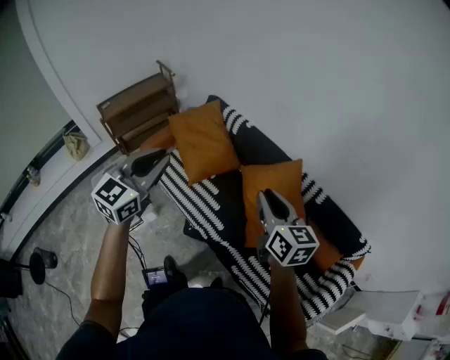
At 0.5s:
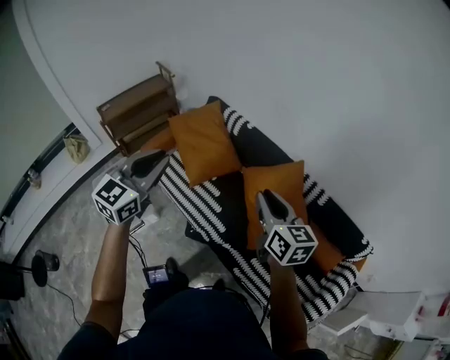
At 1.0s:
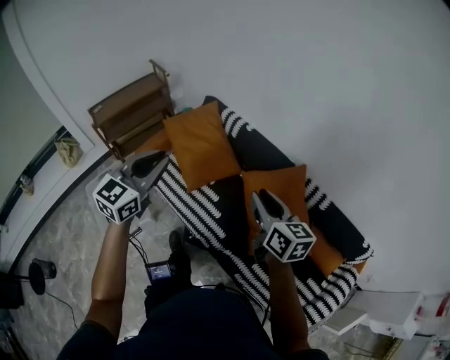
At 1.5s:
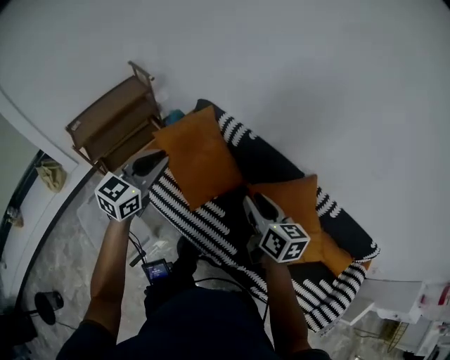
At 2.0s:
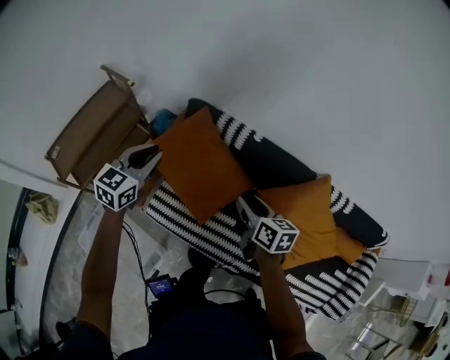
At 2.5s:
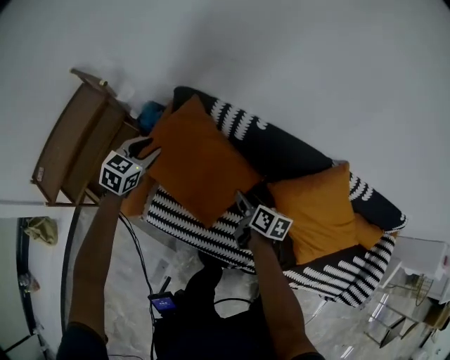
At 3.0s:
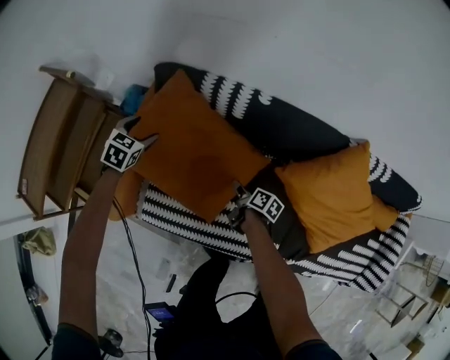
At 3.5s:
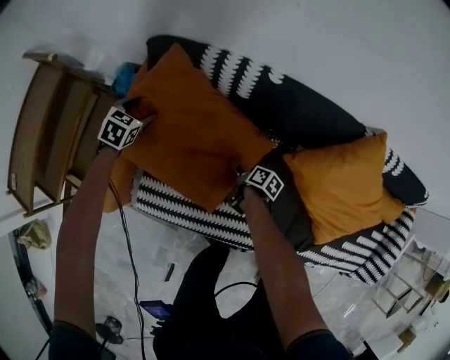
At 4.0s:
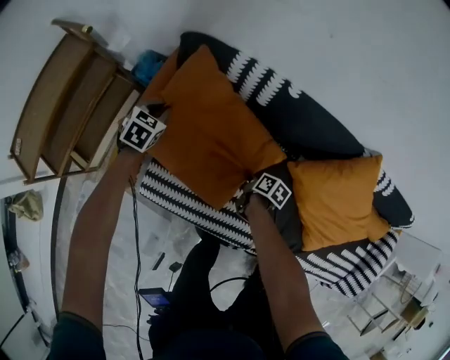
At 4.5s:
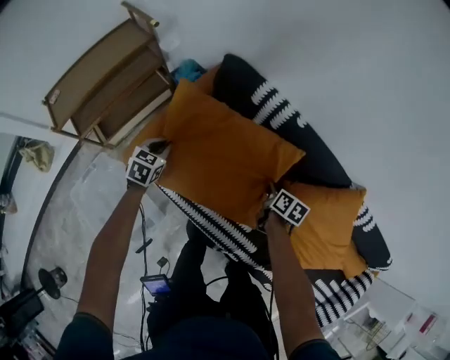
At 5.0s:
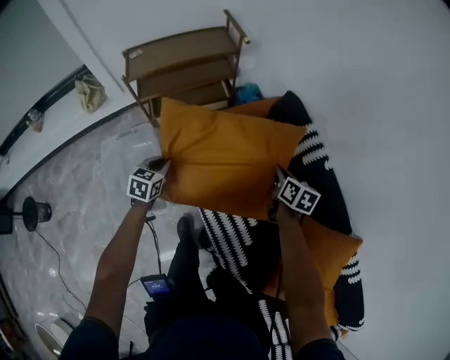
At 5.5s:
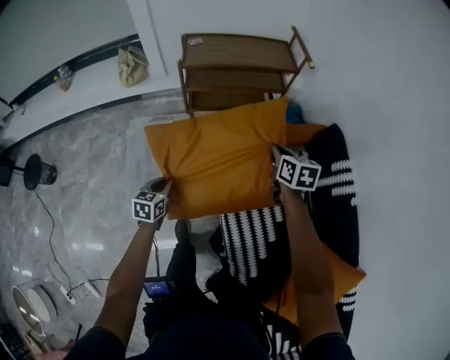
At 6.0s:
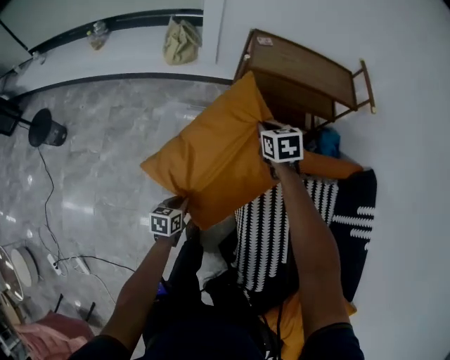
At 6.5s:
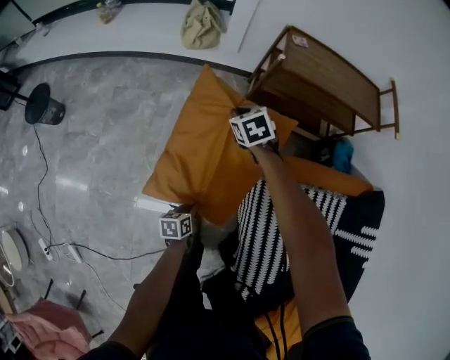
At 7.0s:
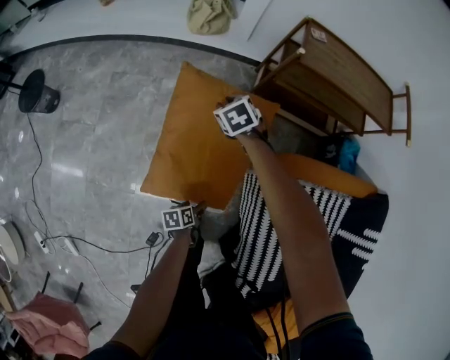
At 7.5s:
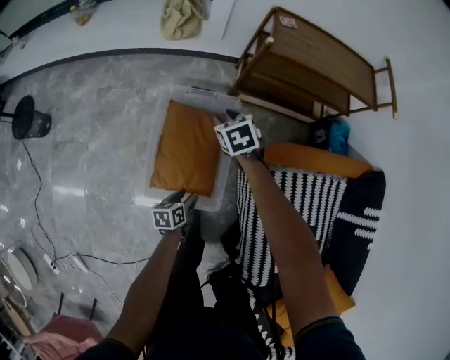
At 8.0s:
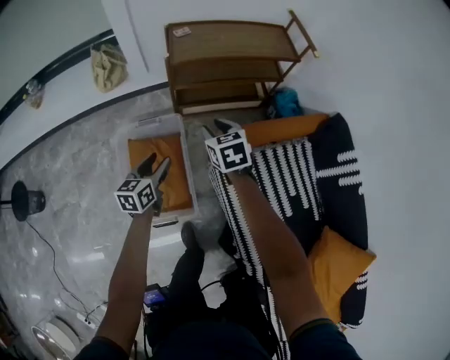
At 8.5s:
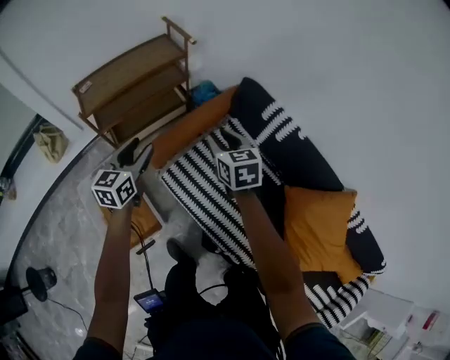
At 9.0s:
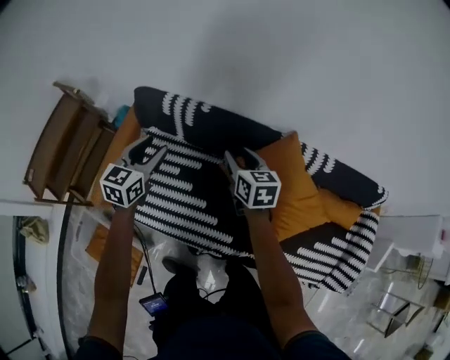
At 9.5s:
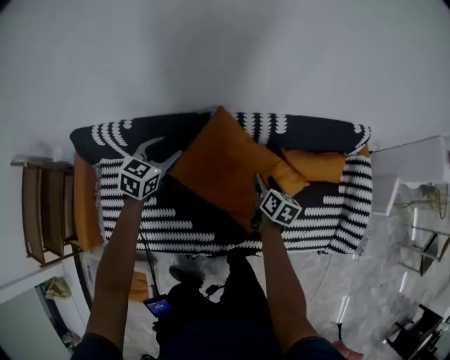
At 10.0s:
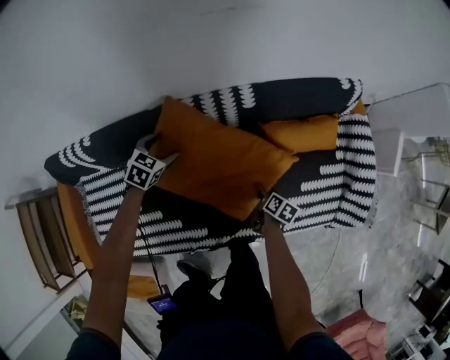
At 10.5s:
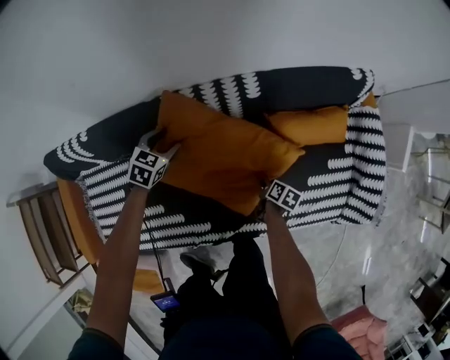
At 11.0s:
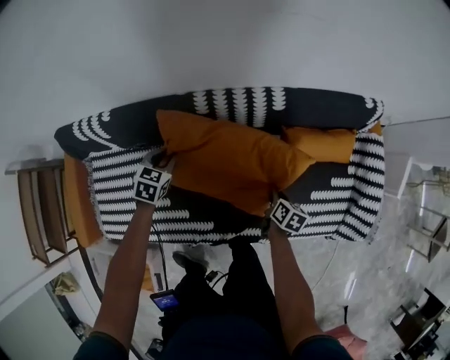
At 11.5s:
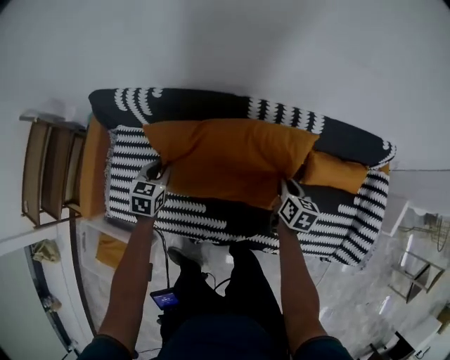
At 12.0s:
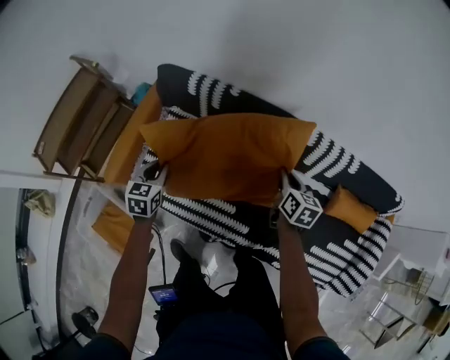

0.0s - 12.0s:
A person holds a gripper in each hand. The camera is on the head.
0.0s - 2.0s: Both grippers are carried forward and to the left, about 50 cm. Both grippers move downward, some 20 cm. The left gripper swivels roughly 20 degrees. The right gripper rotates about 30 degrees.
2.0s - 4.0s: The left gripper shifts about 40 cm downward and forward, points its fingers some 30 degrees further downward, and opens and closes again. Meanwhile the right gripper travels downward by about 40 cm, swivels some 50 degrees, and closes its fingers.
4.0s - 6.0s: The left gripper goes upward and returns, approximately 15 cm each way, and rotates around the line of its fingers by roughly 90 degrees, counterclockwise from behind; the right gripper changes place by about 80 cm, and rolls counterclockwise, seen from behind, by roughly 110 degrees.
6.0s - 8.0s: The right gripper goes to the left and returns, about 25 cm each way, and opens its fingers; the left gripper shifts approximately 20 cm forward and upward, changes its angle by roughly 20 degrees, and opens up.
8.0s - 10.0s: The pair of grippers is taken about 1 m. The right gripper rolls clockwise, seen from behind, by some 120 degrees, and opens up. Meanwhile the left gripper angles its fingers downward, by some 30 degrees, and opens up.
10.0s - 12.0s: The right gripper shifts by some 50 cm, rolls counterclockwise, seen from behind, by roughly 50 degrees, and closes up; the left gripper ends up roughly 60 cm from where it was, swivels about 60 degrees, and closes its fingers.

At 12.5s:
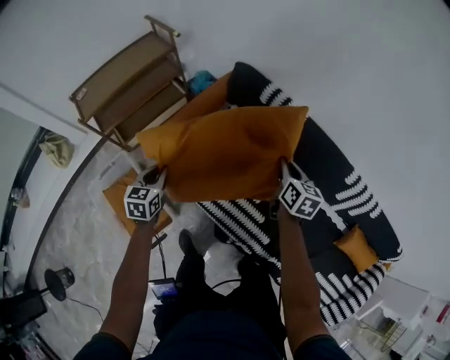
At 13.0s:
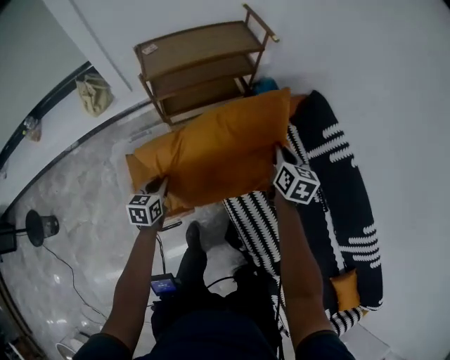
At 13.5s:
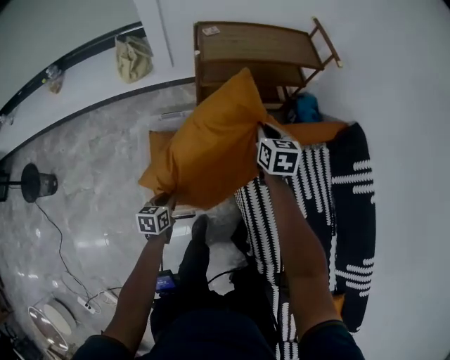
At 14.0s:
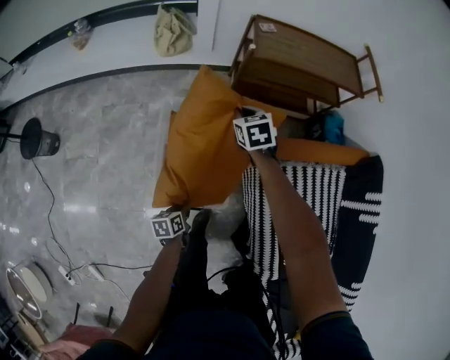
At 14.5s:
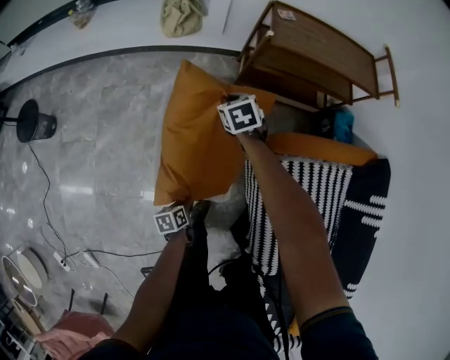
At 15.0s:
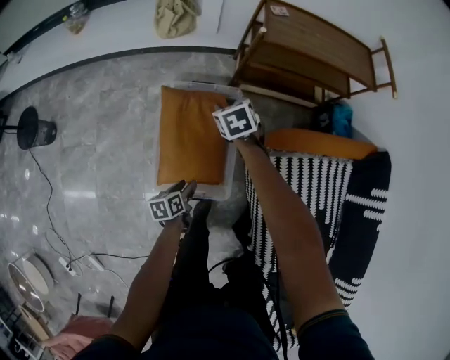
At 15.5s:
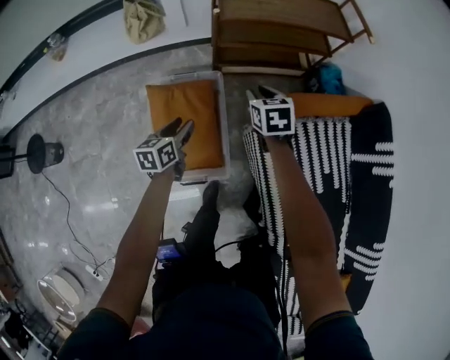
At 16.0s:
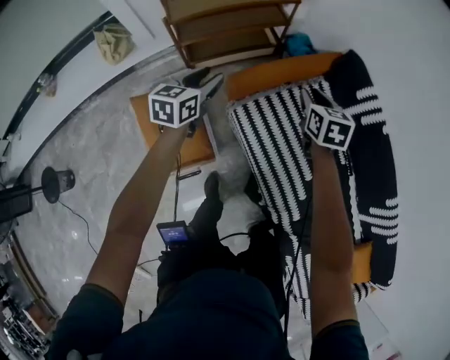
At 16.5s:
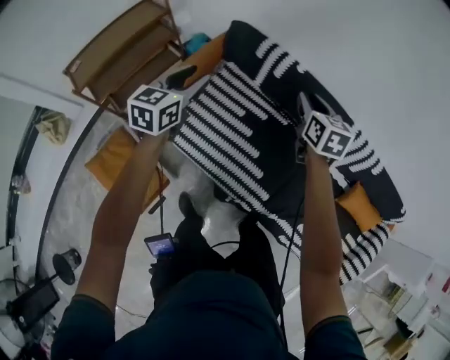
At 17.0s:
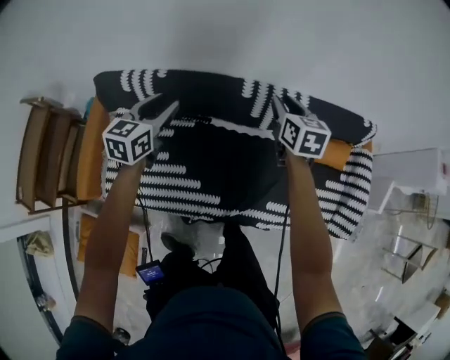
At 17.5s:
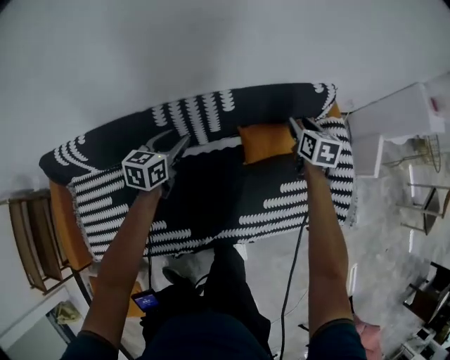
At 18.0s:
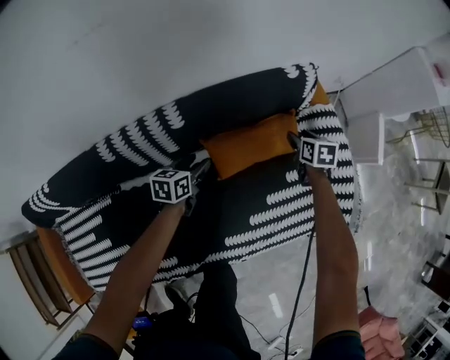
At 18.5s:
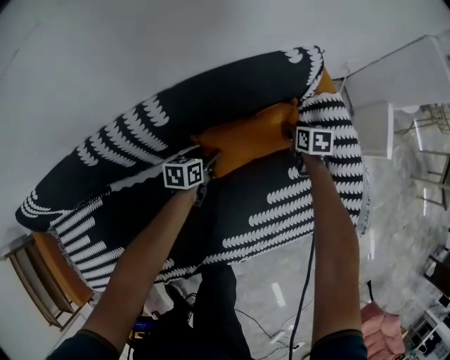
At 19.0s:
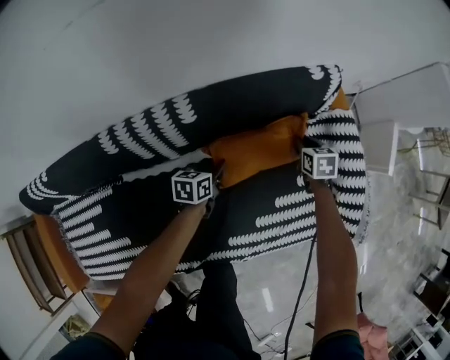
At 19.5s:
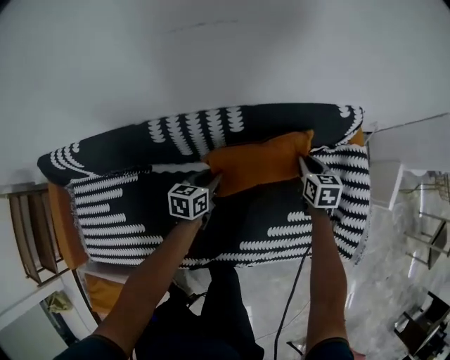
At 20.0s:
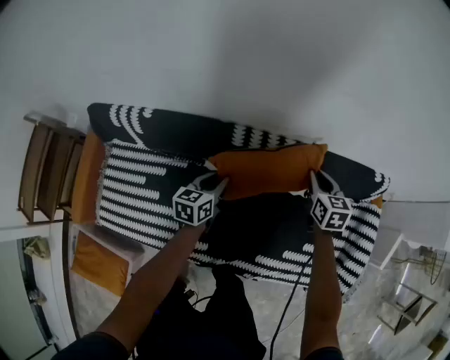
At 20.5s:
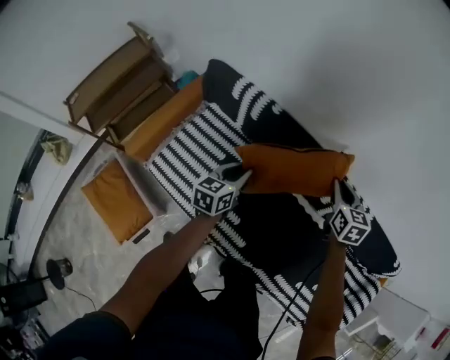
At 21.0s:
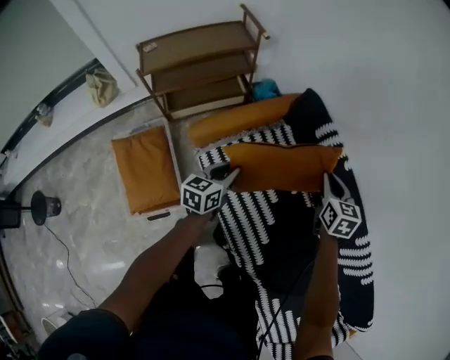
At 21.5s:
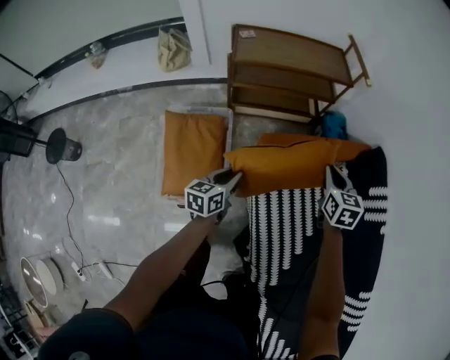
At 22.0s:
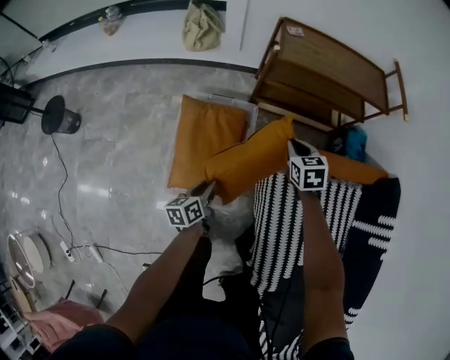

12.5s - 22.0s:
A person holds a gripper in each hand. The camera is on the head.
12.5s - 14.5s: The right gripper ends up about 90 cm from where it was, and swivels roughly 90 degrees; the left gripper ends up about 50 cm from where it was, and rotates around the line of its fingers by roughly 80 degrees, counterclockwise from behind.
14.5s - 16.5s: The right gripper changes place by some 1 m, and swivels approximately 80 degrees; the left gripper changes place by approximately 80 cm, and rotates around the line of its fingers by roughly 80 degrees, clockwise from behind.
16.5s - 18.0s: The two grippers travel together, roughly 90 cm. The left gripper rotates roughly 60 degrees. Meanwhile the right gripper changes its angle by roughly 60 degrees.
18.0s - 20.0s: The left gripper changes place by about 35 cm, changes its angle by about 30 degrees, and closes its fingers. Meanwhile the right gripper moves about 40 cm, turns by approximately 30 degrees, and closes its fingers.
20.0s - 22.0s: The pair of grippers is taken approximately 1 m. The left gripper swivels approximately 100 degrees. Meanwhile the right gripper rotates some 90 degrees.

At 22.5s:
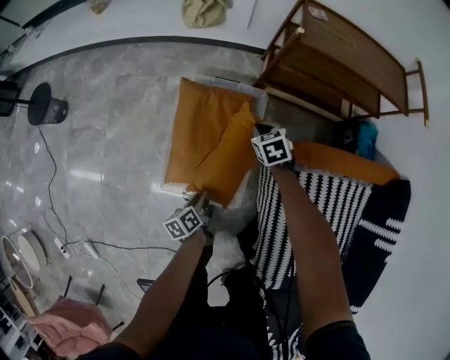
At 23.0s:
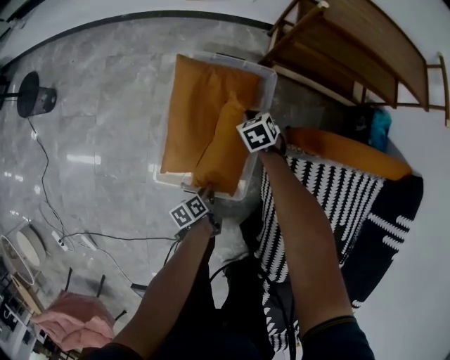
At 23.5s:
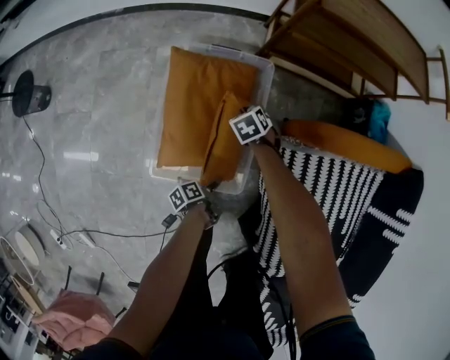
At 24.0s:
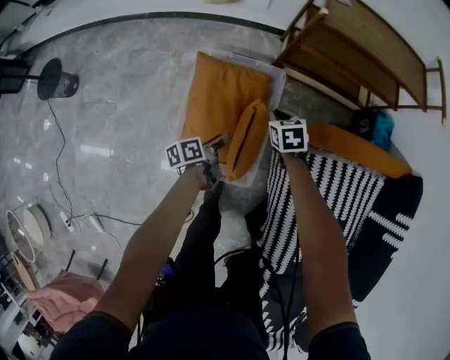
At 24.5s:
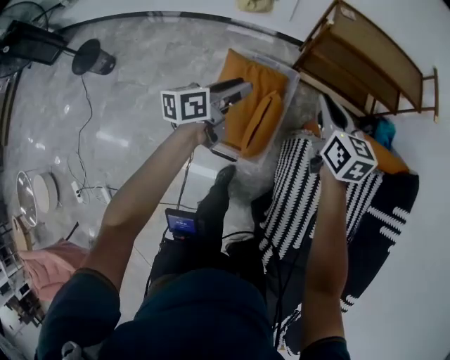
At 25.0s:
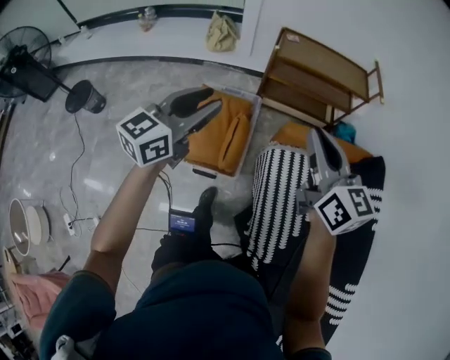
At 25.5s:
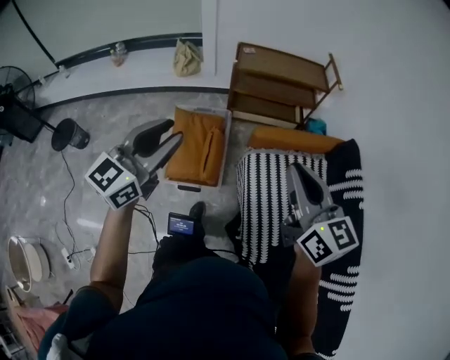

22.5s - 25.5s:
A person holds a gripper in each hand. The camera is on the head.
22.5s - 24.0s: The right gripper reaches roughly 15 cm downward, then returns; the left gripper moves some 15 cm downward and comes back, and opens up.
24.0s - 25.5s: Both grippers travel together upward and backward, approximately 70 cm. The left gripper twists some 80 degrees clockwise, seen from behind; the right gripper tilts its fingers approximately 50 degrees upward.

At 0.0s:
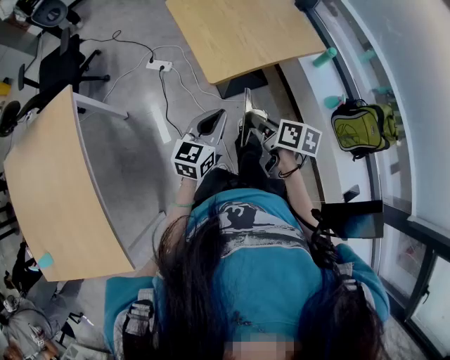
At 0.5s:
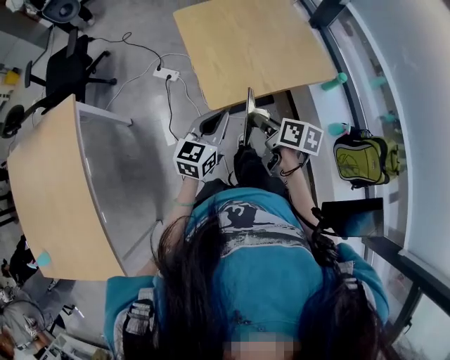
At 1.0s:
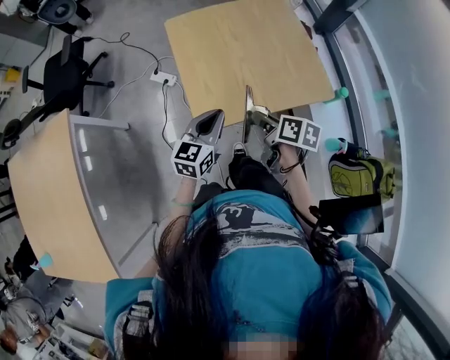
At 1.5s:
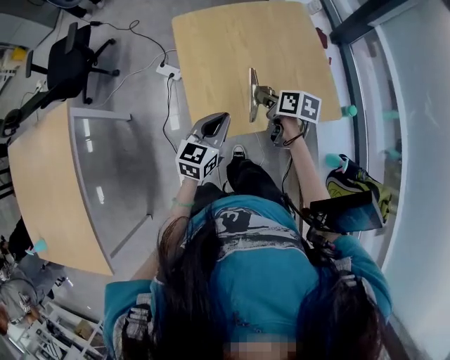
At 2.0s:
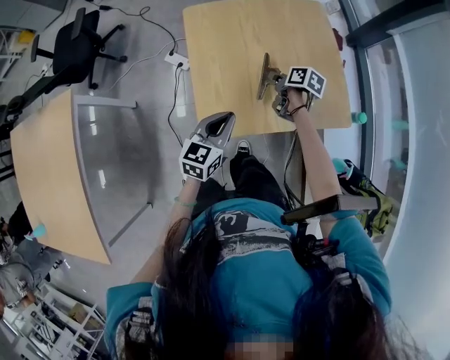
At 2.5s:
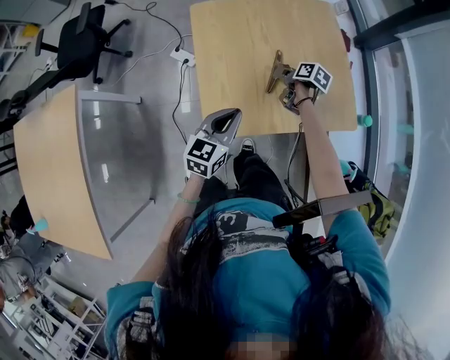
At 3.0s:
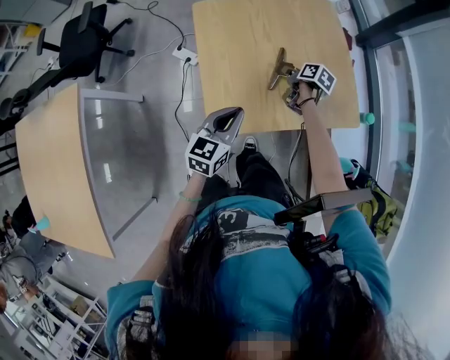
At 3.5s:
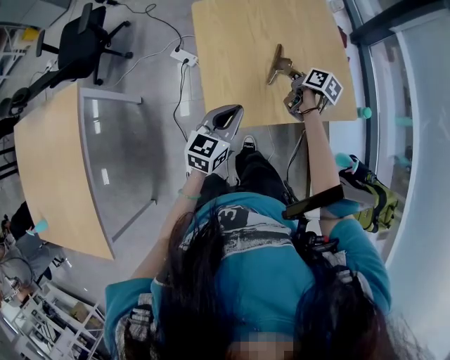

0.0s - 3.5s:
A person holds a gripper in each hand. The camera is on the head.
0.0s - 2.0s: The right gripper moves forward, roughly 50 cm. Meanwhile the left gripper heads forward, covering some 30 cm.
2.0s - 3.5s: There are only small adjustments of the grippers.
